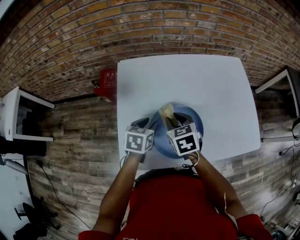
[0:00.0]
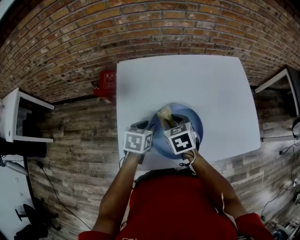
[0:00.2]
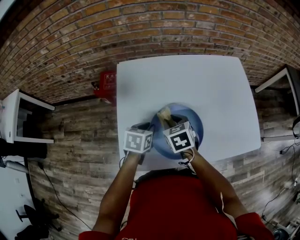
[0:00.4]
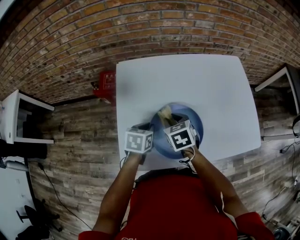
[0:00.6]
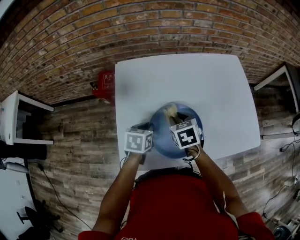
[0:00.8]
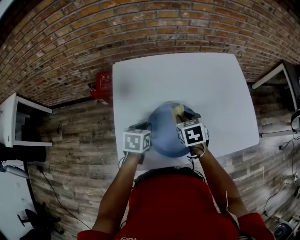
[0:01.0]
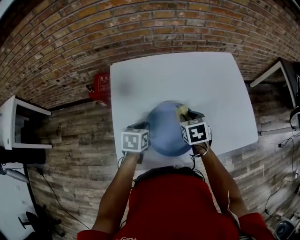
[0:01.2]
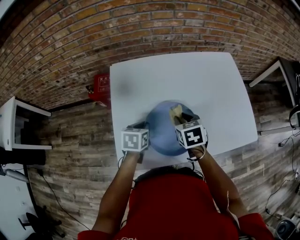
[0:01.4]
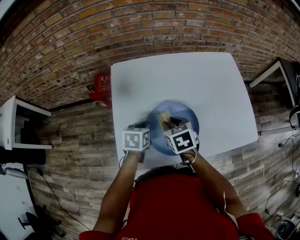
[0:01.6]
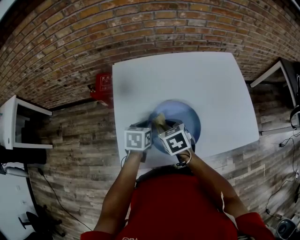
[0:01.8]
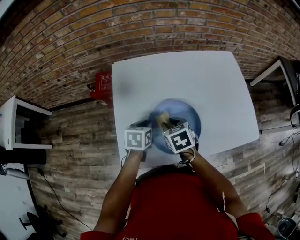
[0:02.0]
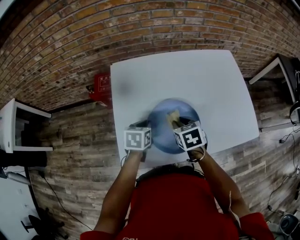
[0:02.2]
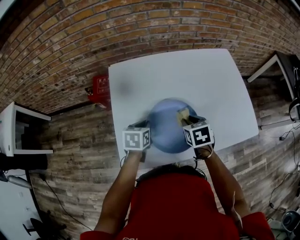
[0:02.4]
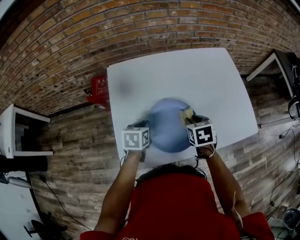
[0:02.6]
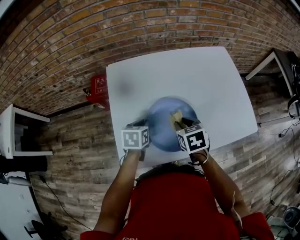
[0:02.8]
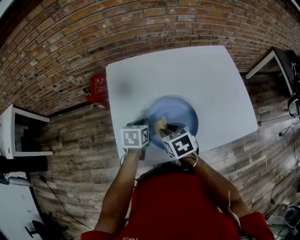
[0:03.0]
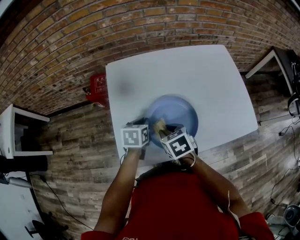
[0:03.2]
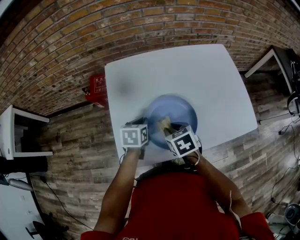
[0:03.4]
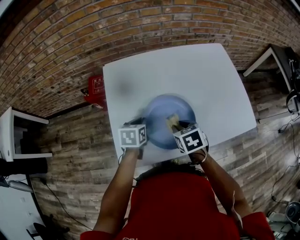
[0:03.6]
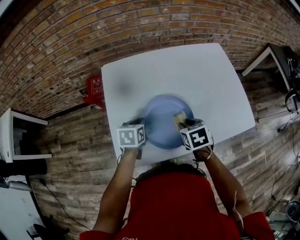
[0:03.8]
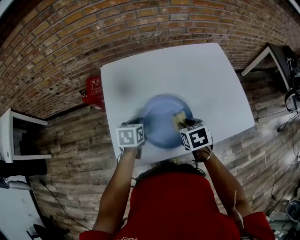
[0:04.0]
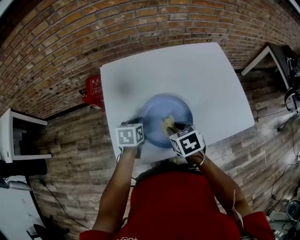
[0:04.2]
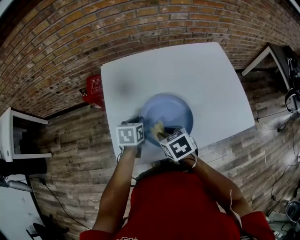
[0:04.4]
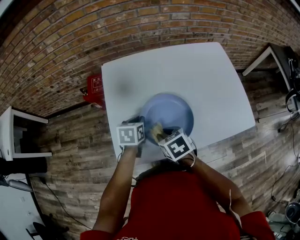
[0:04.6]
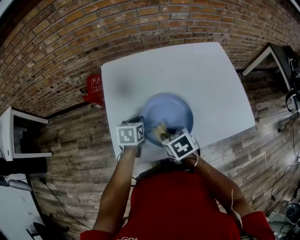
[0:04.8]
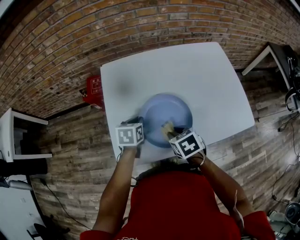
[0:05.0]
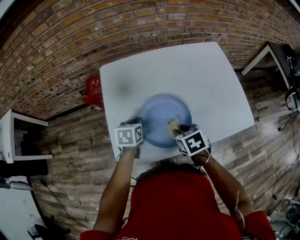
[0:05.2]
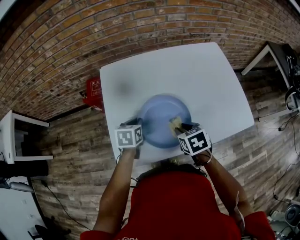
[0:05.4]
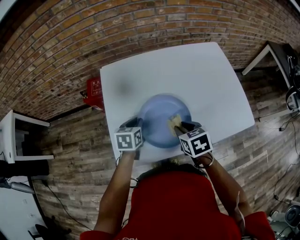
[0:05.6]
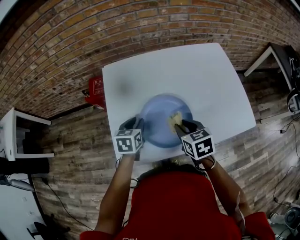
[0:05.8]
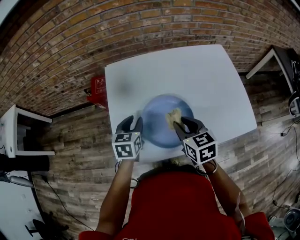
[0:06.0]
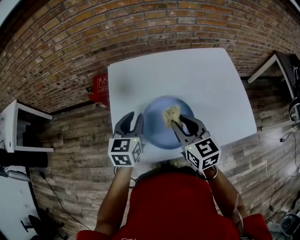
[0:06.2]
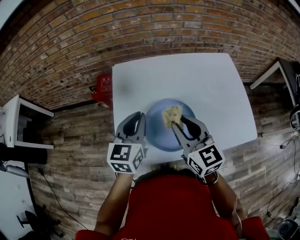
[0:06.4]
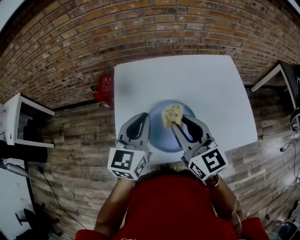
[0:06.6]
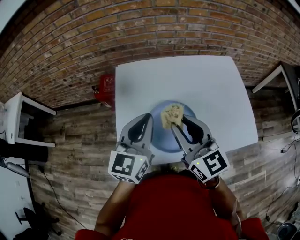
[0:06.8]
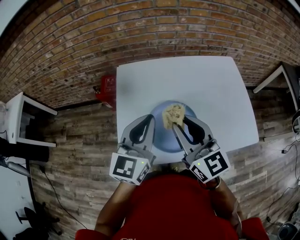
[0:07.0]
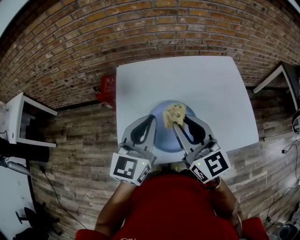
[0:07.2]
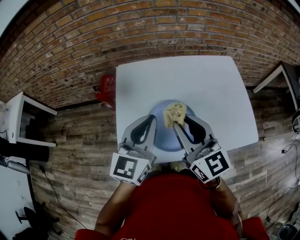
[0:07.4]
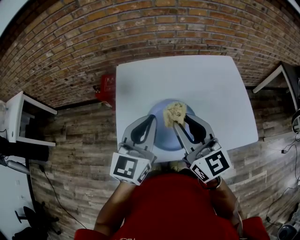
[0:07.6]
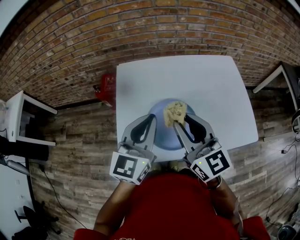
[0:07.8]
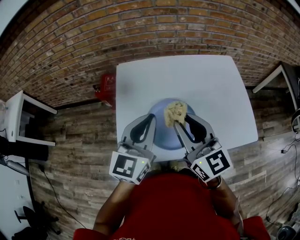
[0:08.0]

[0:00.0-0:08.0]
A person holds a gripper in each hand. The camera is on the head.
0:00.0 to 0:01.6: The left gripper closes; the right gripper travels to the right and back again, approximately 10 cm each way.
0:01.6 to 0:03.2: The right gripper heads backward, covering roughly 5 cm, and reaches about 10 cm to the right, then returns.
0:03.2 to 0:04.8: The right gripper moves roughly 10 cm to the right and comes back.
0:04.8 to 0:06.4: The grippers both shift upward by some 15 cm. The right gripper points its fingers about 50 degrees further upward. Meanwhile the left gripper points its fingers about 30 degrees further upward, and opens, then closes once more.
0:06.4 to 0:08.0: The two grippers go approximately 5 cm upward.

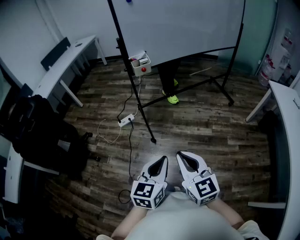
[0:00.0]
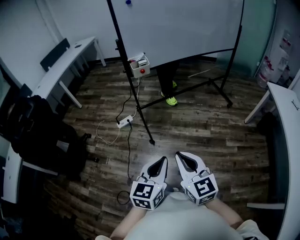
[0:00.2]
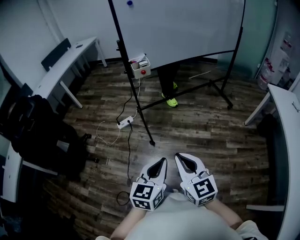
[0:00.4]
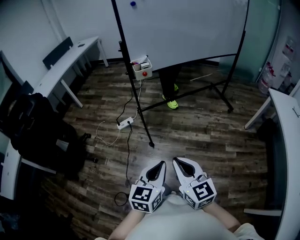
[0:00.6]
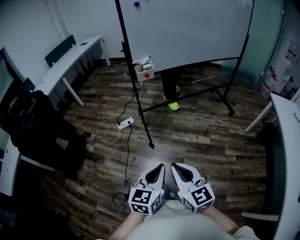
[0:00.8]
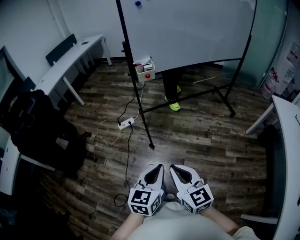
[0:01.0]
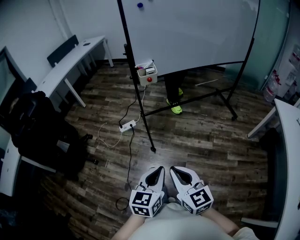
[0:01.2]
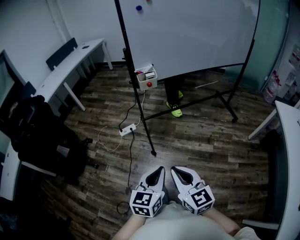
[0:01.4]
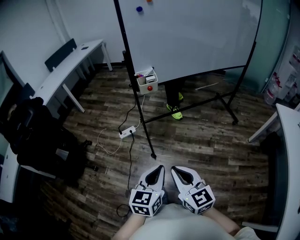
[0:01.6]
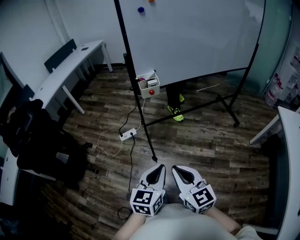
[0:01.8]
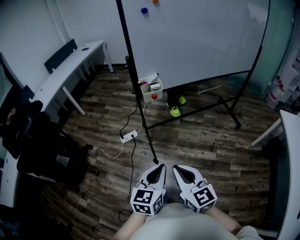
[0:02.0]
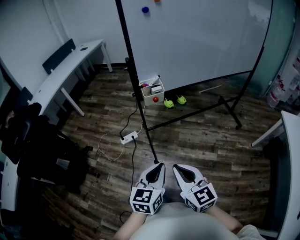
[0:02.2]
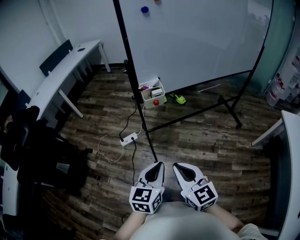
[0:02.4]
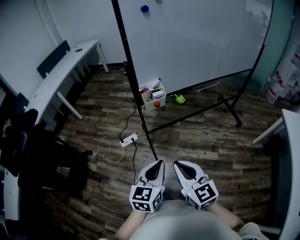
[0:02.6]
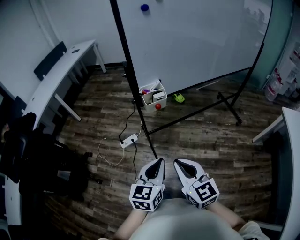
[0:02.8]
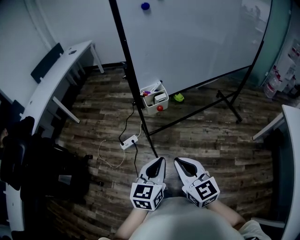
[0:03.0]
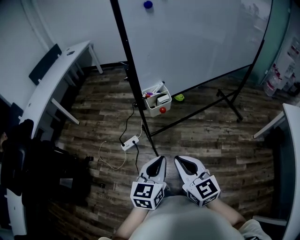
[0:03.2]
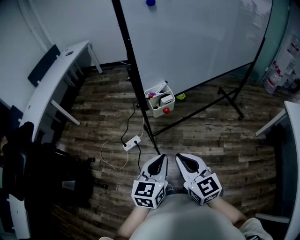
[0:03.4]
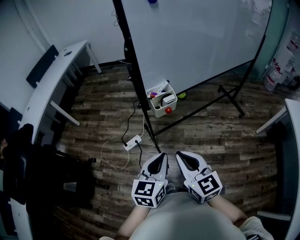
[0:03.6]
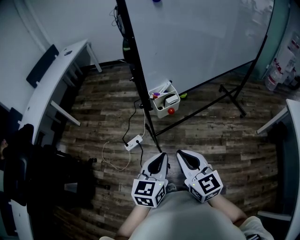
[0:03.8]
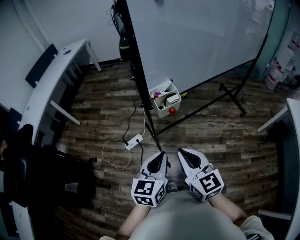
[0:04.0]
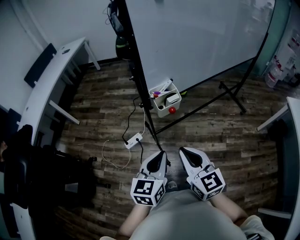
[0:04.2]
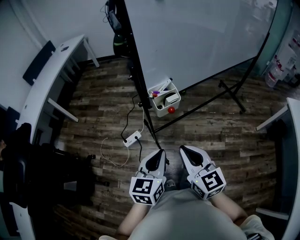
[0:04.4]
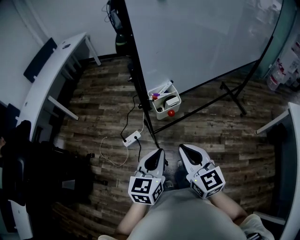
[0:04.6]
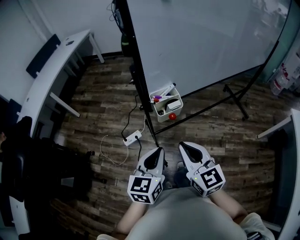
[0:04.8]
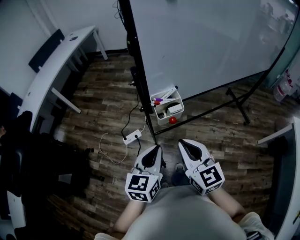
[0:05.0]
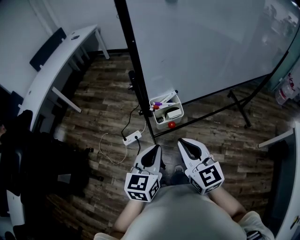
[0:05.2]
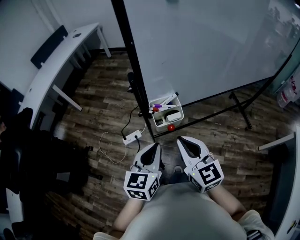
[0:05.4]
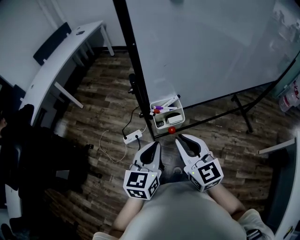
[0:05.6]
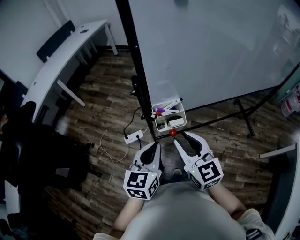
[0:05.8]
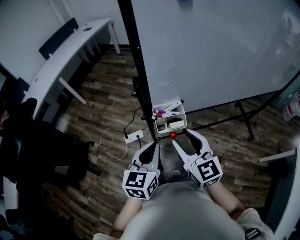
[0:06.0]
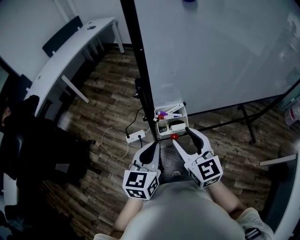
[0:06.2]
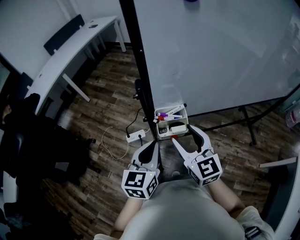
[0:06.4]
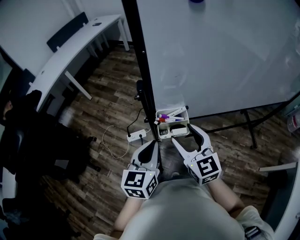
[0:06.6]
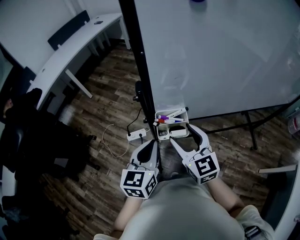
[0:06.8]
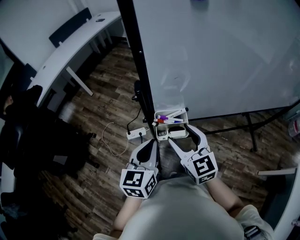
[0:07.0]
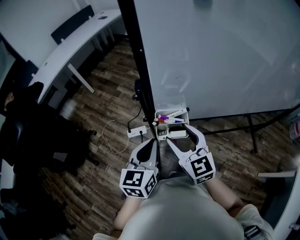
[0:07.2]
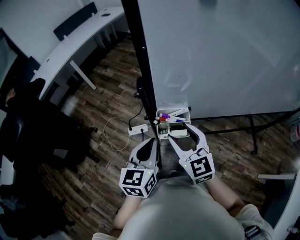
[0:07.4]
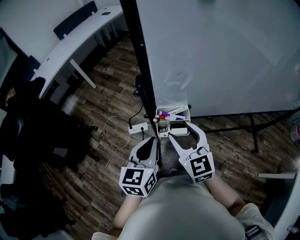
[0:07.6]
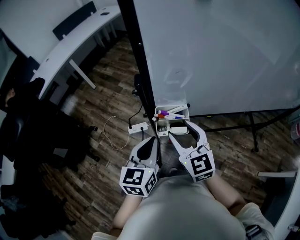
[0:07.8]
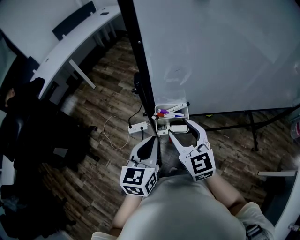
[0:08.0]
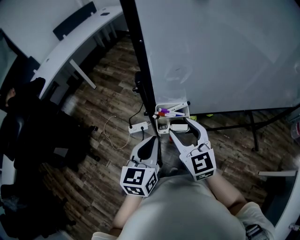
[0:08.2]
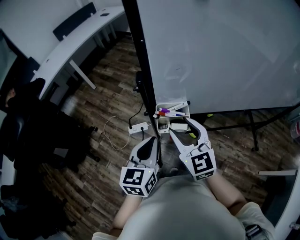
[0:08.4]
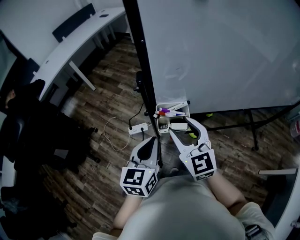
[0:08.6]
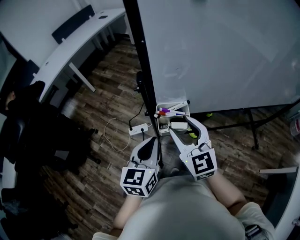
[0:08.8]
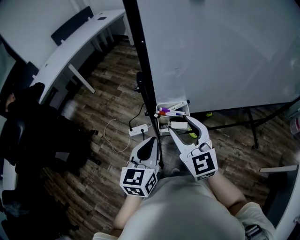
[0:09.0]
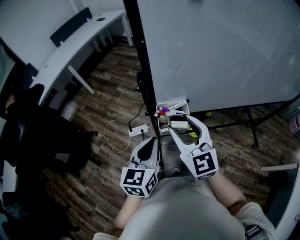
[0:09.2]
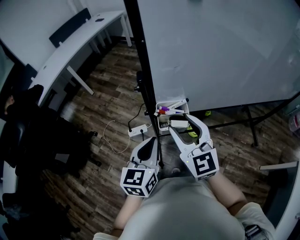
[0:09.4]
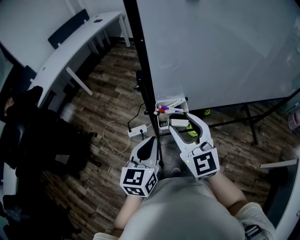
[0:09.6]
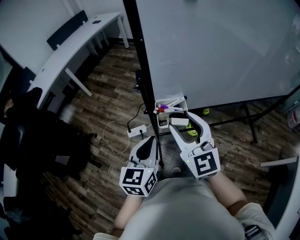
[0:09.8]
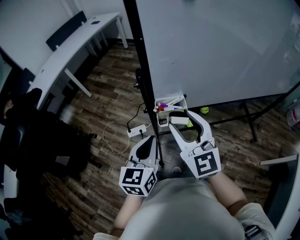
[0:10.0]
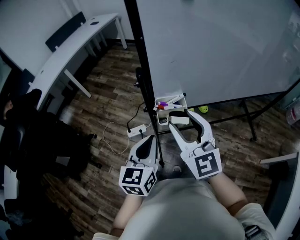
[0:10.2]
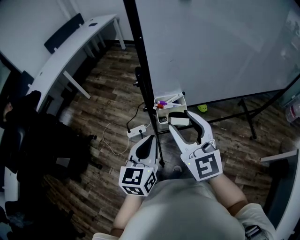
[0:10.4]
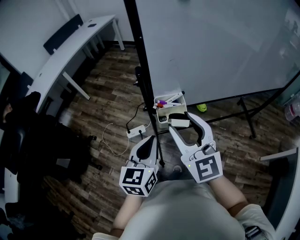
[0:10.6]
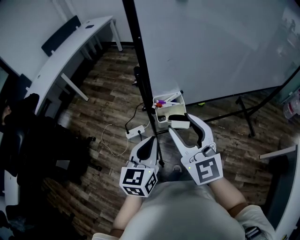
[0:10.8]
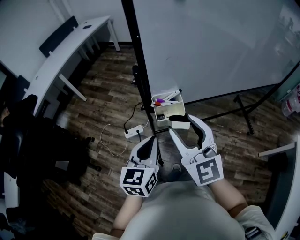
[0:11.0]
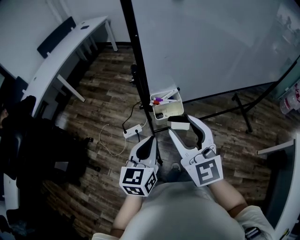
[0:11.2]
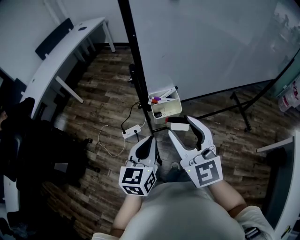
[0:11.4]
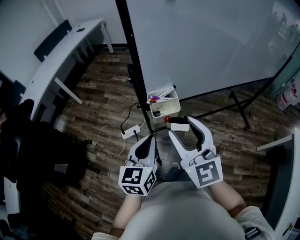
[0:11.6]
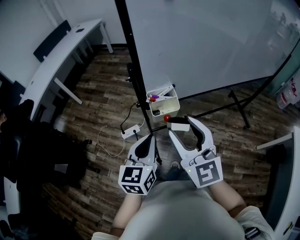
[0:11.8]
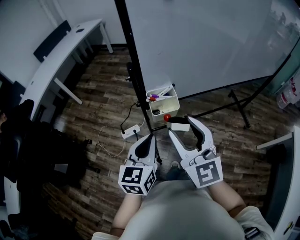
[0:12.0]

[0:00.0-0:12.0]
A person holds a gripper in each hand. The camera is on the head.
0:00.0 to 0:01.6: The two grippers go roughly 10 cm forward.
0:01.6 to 0:03.0: The two grippers go some 20 cm forward.
0:03.0 to 0:04.4: The right gripper travels forward by approximately 10 cm, while the left gripper shifts some 10 cm forward and to the left.
0:04.4 to 0:06.0: The grippers both shift forward by about 15 cm. The right gripper opens up.
0:06.0 to 0:07.6: The right gripper heads forward, covering about 5 cm.
0:07.6 to 0:09.0: The grippers move only a little.
0:09.0 to 0:10.4: The right gripper goes about 5 cm upward.
0:10.4 to 0:12.0: The right gripper heads backward, covering about 5 cm.

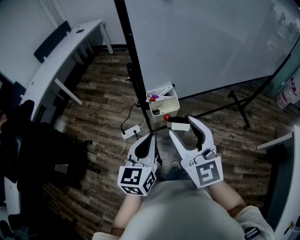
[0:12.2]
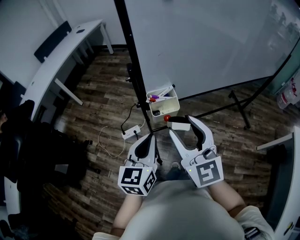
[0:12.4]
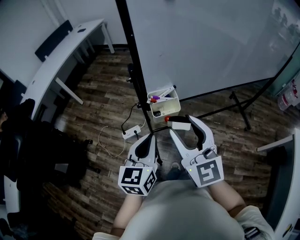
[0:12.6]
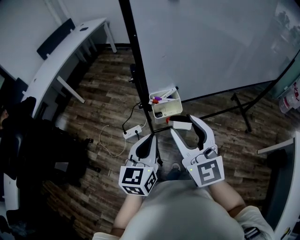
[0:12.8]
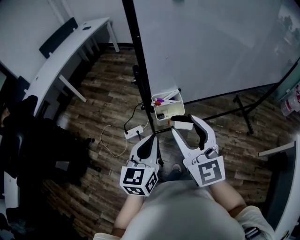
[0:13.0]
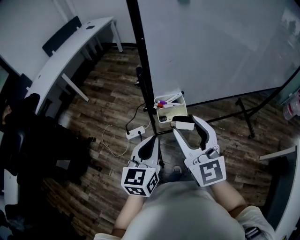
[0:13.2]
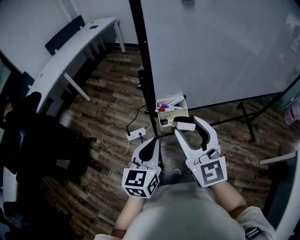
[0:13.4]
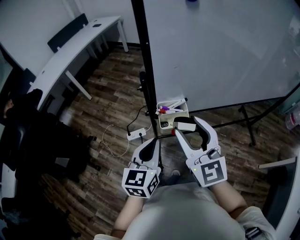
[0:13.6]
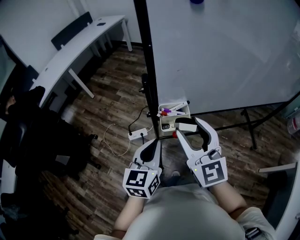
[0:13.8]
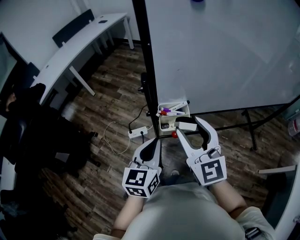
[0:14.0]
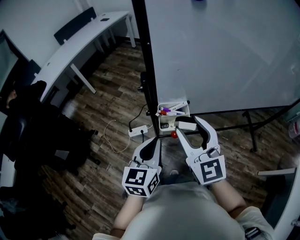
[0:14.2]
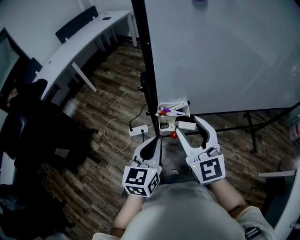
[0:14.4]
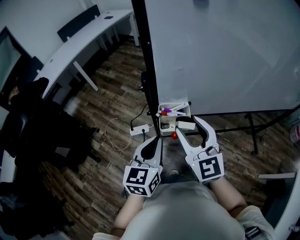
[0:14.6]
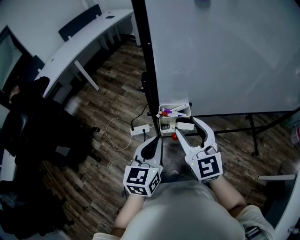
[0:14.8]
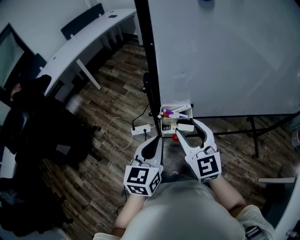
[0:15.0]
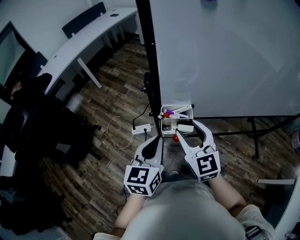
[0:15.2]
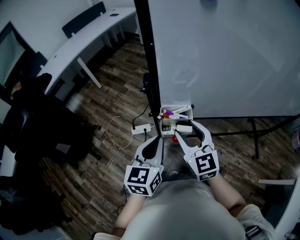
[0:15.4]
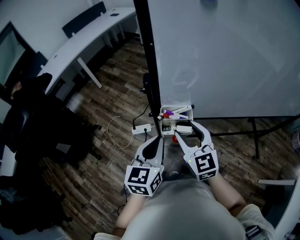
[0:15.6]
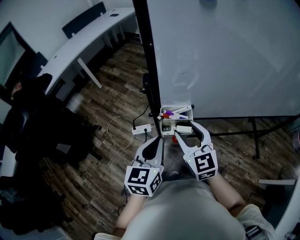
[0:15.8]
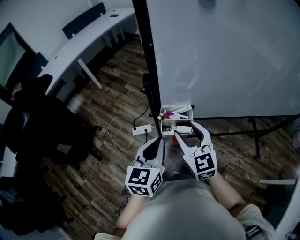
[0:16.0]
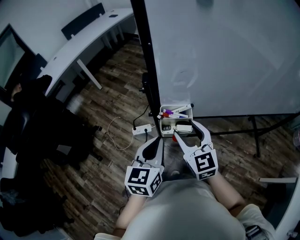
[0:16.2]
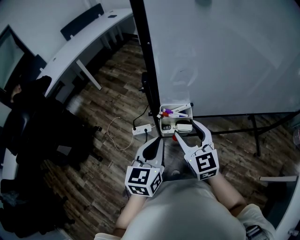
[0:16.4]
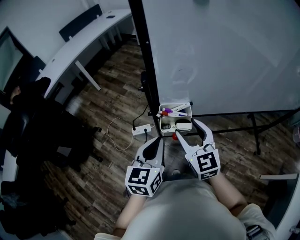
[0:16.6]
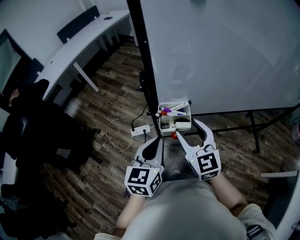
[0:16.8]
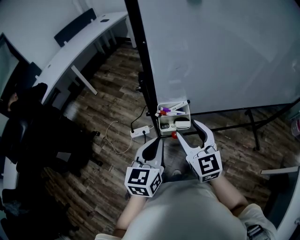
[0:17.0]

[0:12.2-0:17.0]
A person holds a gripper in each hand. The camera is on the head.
0:12.2 to 0:13.8: The right gripper travels forward by some 10 cm. The left gripper heads forward, covering roughly 5 cm.
0:13.8 to 0:15.4: The right gripper travels downward by about 10 cm.
0:15.4 to 0:17.0: The grippers make only small movements.
